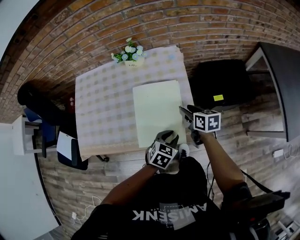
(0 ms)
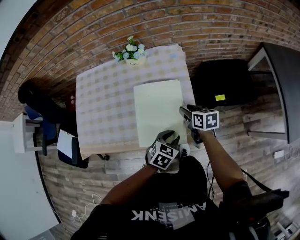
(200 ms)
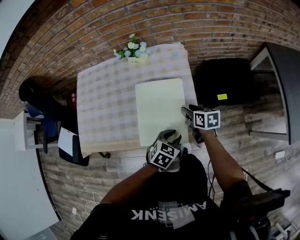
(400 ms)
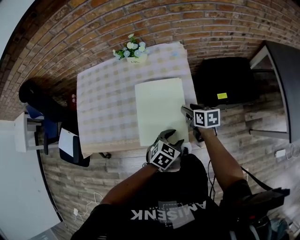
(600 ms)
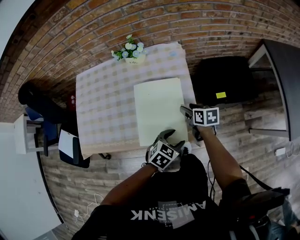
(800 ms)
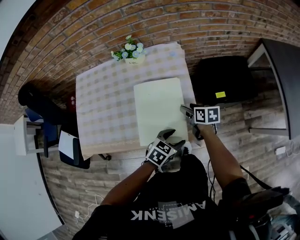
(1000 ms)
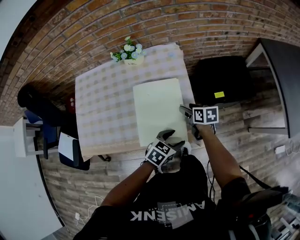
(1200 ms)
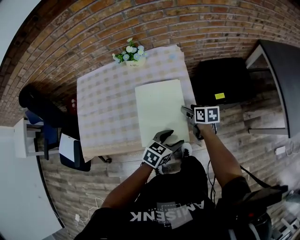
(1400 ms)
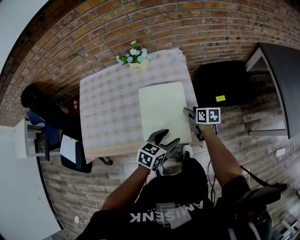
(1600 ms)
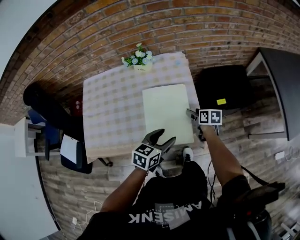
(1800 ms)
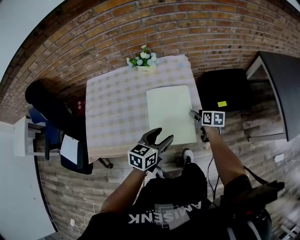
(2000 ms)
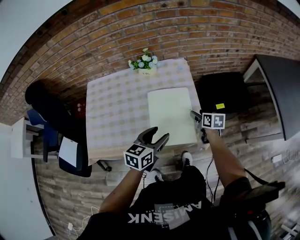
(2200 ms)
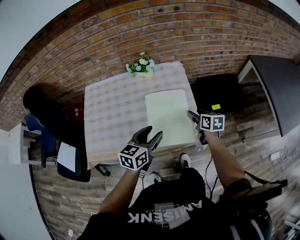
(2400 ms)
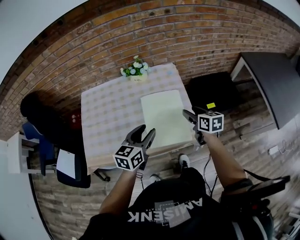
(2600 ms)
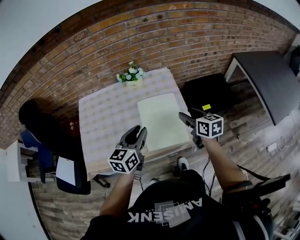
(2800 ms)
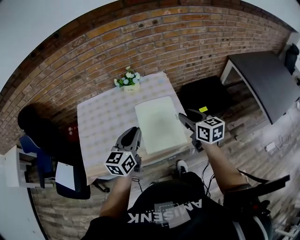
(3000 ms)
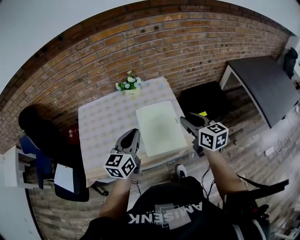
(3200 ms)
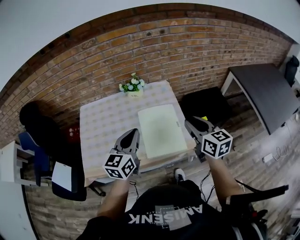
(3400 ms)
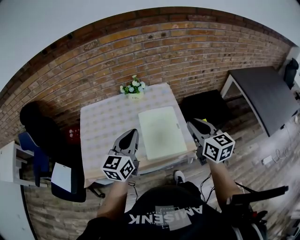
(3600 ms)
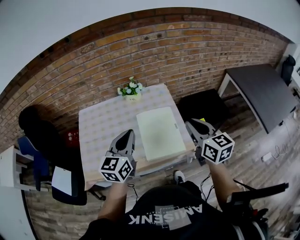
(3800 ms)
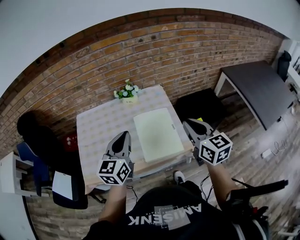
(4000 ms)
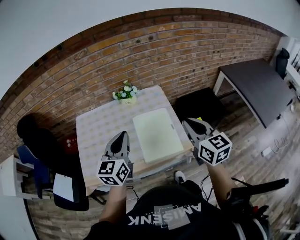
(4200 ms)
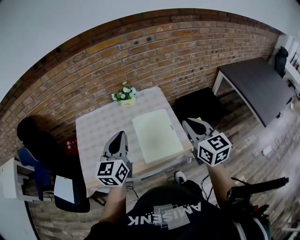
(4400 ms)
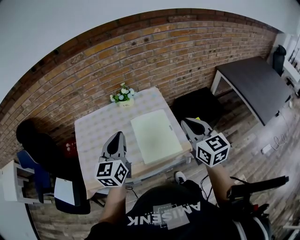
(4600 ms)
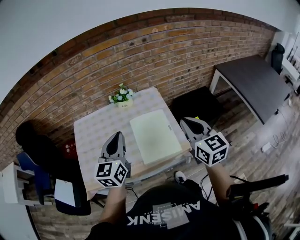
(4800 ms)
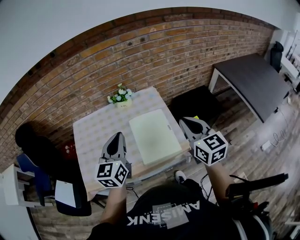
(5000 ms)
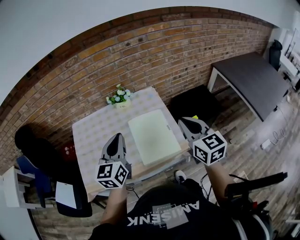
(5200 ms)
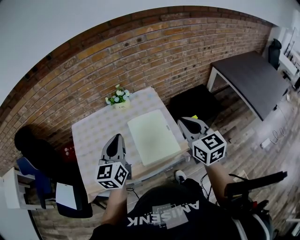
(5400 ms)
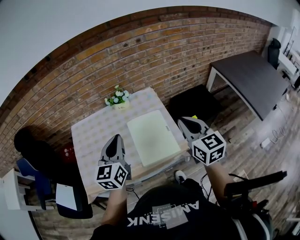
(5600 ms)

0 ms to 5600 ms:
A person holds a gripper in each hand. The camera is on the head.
0 ms to 1400 ms: The right gripper is displaced downward by some 5 cm, while the left gripper opens its fingers.
1400 ms to 2800 ms: The left gripper travels to the left and upward by about 25 cm, turns by some 40 degrees, and closes up. The right gripper travels upward by approximately 20 cm, and changes its angle by some 30 degrees.
2800 ms to 4200 ms: The left gripper is displaced upward by some 10 cm, and closes up, while the right gripper travels upward and backward by roughly 20 cm, turns by approximately 20 degrees, and closes up.
4200 ms to 5600 ms: The grippers stay close to where they were, moving slightly.

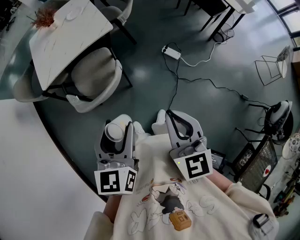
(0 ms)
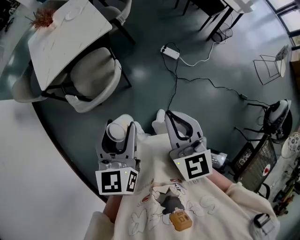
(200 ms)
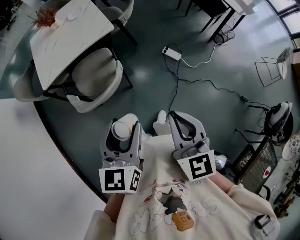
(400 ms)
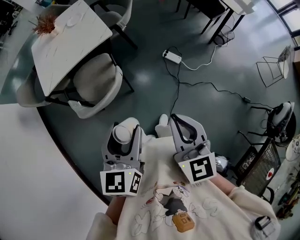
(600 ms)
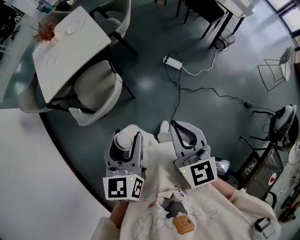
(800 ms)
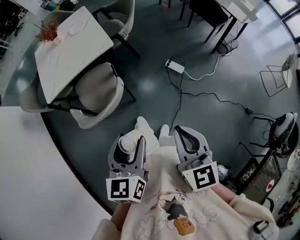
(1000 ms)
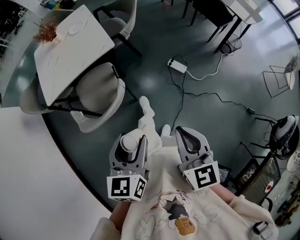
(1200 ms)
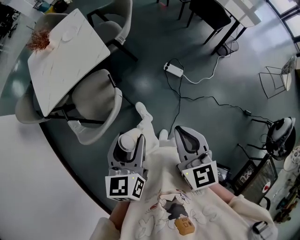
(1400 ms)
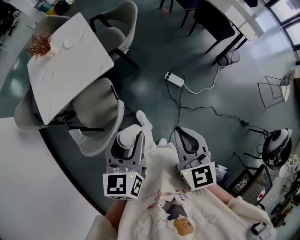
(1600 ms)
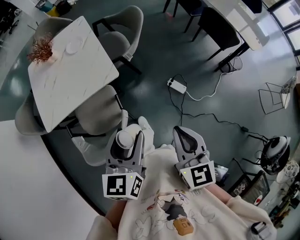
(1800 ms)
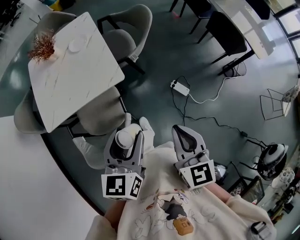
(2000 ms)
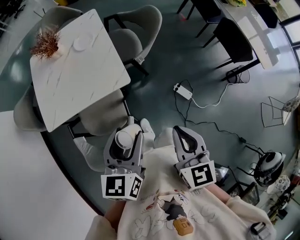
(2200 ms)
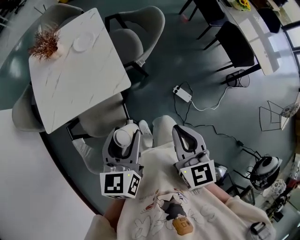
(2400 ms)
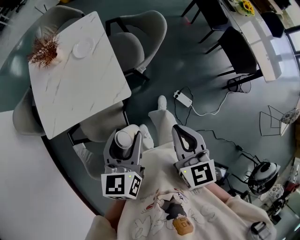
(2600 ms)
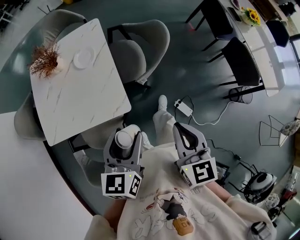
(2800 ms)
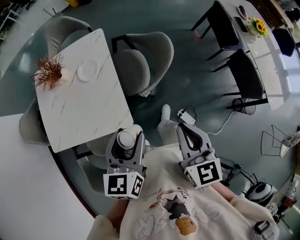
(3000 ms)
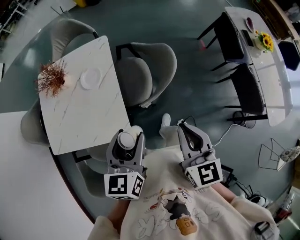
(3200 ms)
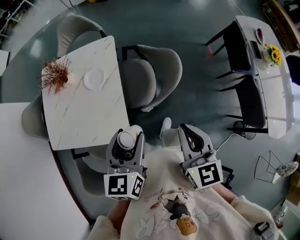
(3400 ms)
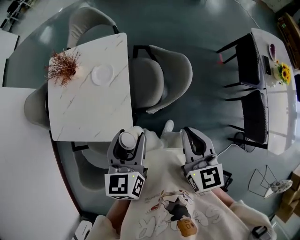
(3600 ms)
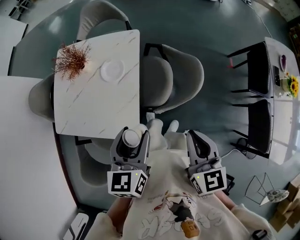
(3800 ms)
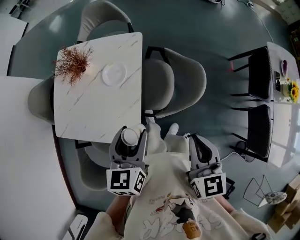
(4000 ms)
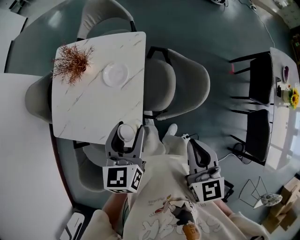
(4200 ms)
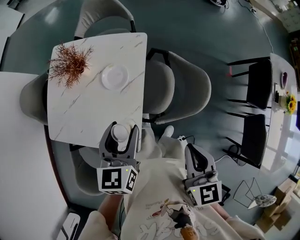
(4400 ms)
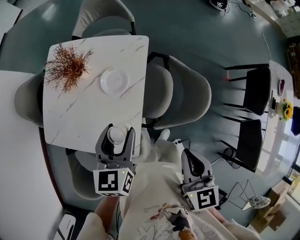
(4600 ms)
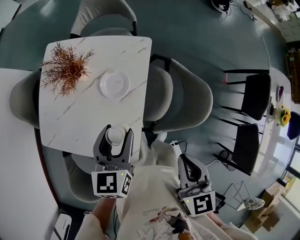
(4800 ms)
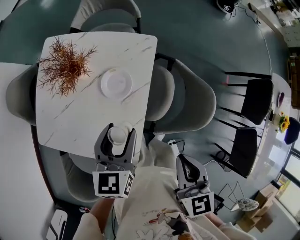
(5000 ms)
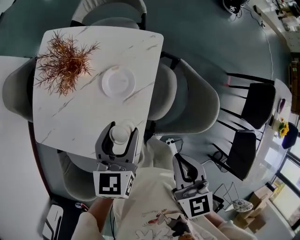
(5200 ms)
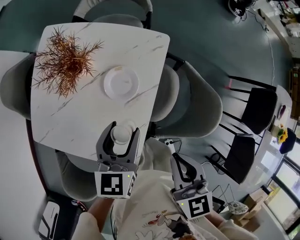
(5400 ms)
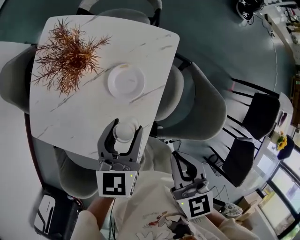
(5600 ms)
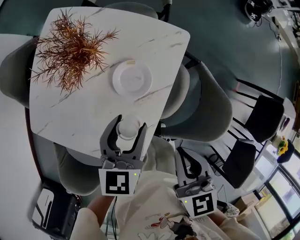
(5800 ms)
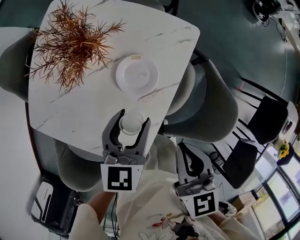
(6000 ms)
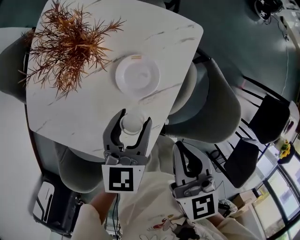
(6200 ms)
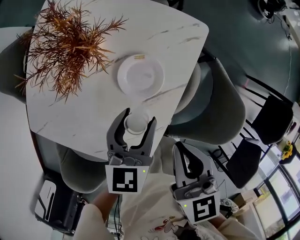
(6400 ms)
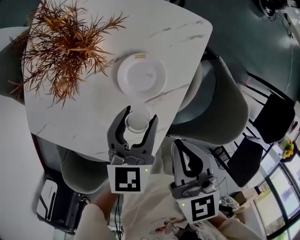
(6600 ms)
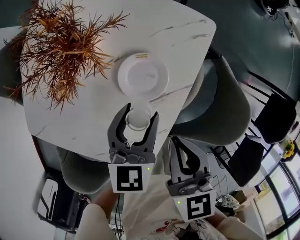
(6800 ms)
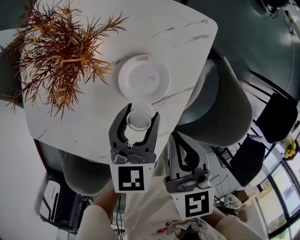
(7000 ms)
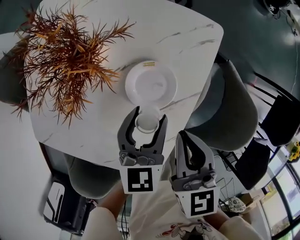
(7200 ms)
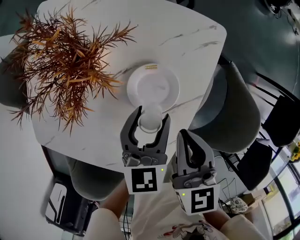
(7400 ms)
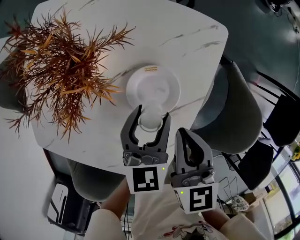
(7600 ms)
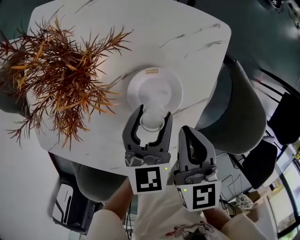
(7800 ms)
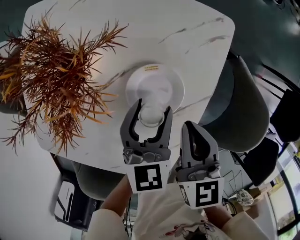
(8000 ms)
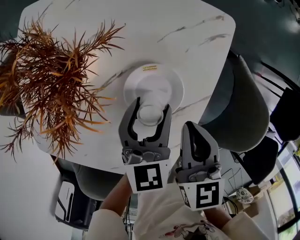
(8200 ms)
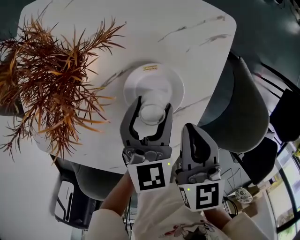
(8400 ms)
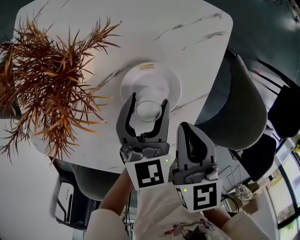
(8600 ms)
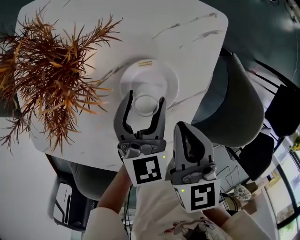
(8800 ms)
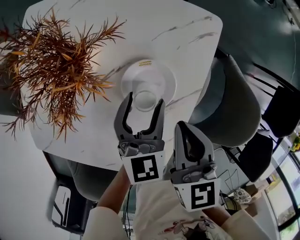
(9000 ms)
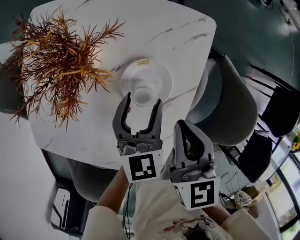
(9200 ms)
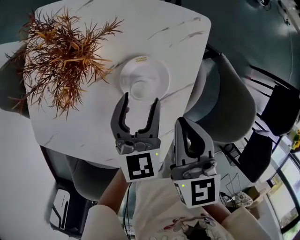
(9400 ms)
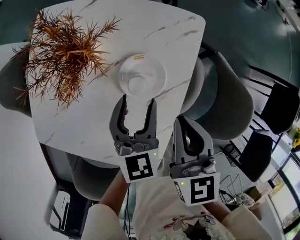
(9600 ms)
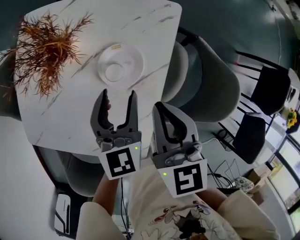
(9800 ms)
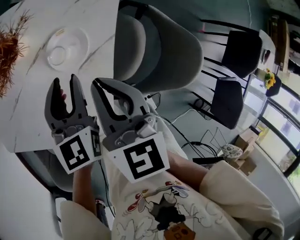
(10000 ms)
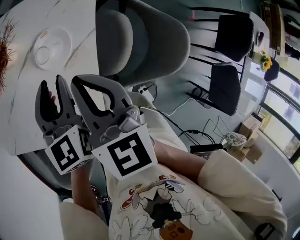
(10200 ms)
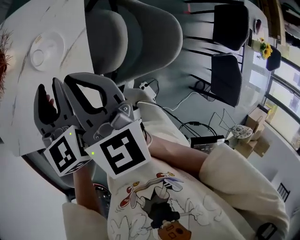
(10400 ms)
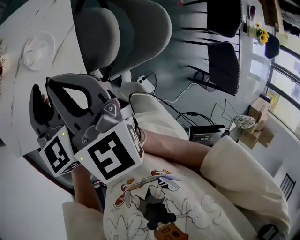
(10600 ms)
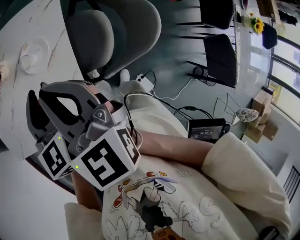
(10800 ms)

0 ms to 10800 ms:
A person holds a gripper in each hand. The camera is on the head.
0 ms to 1600 ms: Both grippers travel together forward, approximately 20 cm.
1600 ms to 3000 ms: Both grippers move forward, some 40 cm.
3000 ms to 4600 ms: Both grippers travel together forward, roughly 20 cm. The left gripper rotates some 20 degrees.
4600 ms to 6200 ms: The right gripper heads forward, to the left and downward, covering about 25 cm. Meanwhile the left gripper travels downward and forward by approximately 20 cm.
6200 ms to 7800 ms: The grippers both shift downward and forward by approximately 10 cm.
7800 ms to 9200 ms: The grippers stay close to where they were, moving slightly.
9200 ms to 10800 ms: Both grippers move upward and backward, some 20 cm. The left gripper closes up.

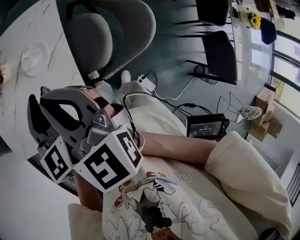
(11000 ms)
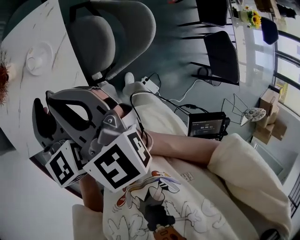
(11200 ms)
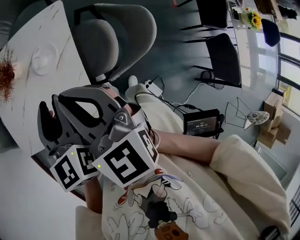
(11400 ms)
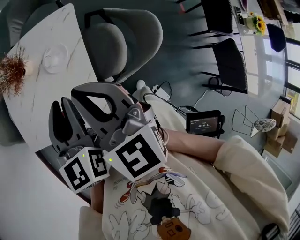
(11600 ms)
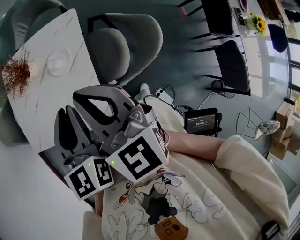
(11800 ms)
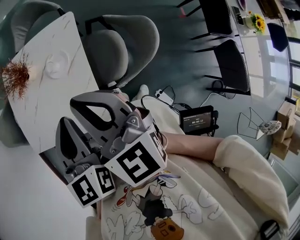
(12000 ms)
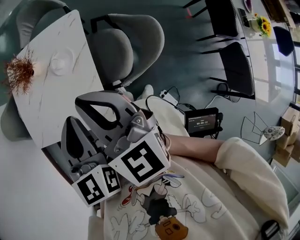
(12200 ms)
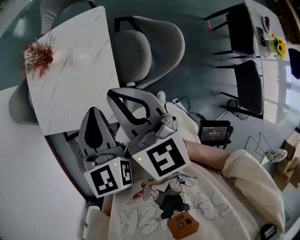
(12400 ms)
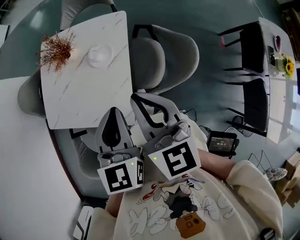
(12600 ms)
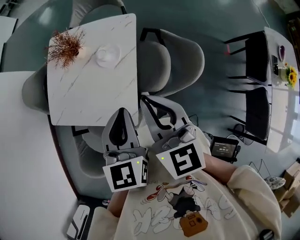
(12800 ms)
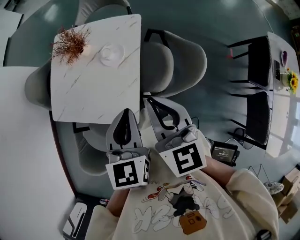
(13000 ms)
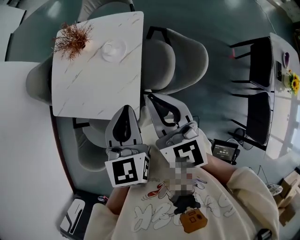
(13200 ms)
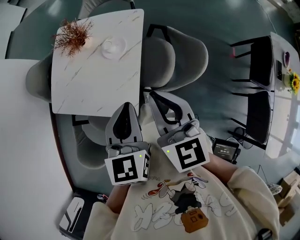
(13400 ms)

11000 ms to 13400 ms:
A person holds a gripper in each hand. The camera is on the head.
11000 ms to 12200 ms: Both grippers travel together backward and upward, roughly 15 cm. The left gripper closes up.
12200 ms to 13400 ms: The grippers move only a little.

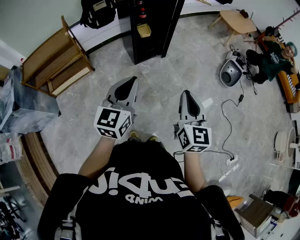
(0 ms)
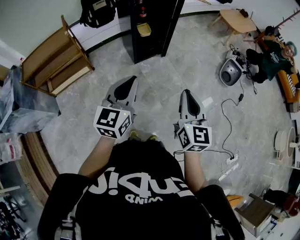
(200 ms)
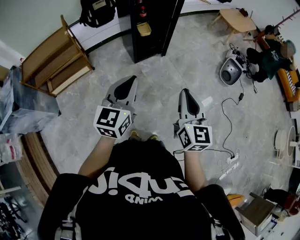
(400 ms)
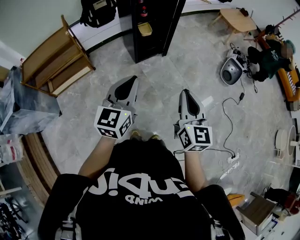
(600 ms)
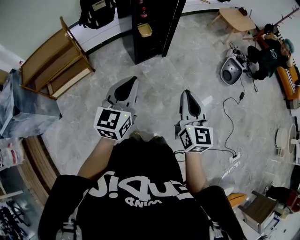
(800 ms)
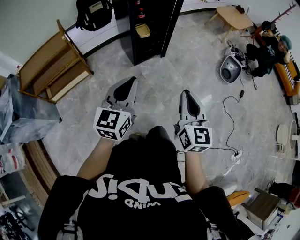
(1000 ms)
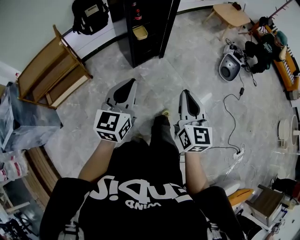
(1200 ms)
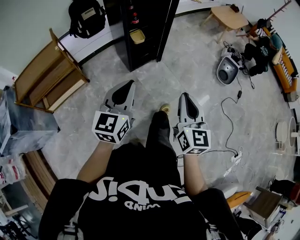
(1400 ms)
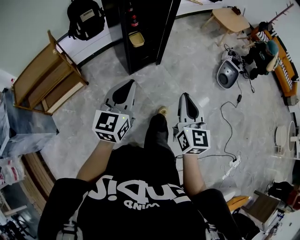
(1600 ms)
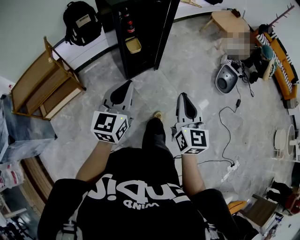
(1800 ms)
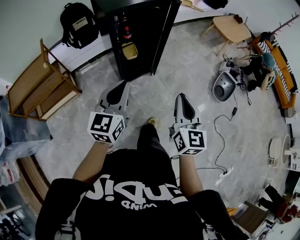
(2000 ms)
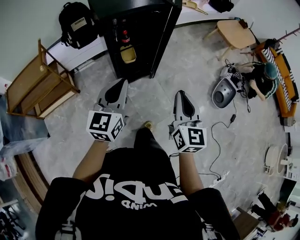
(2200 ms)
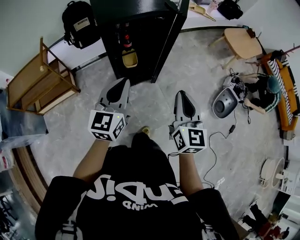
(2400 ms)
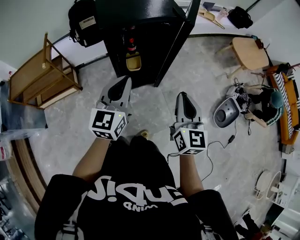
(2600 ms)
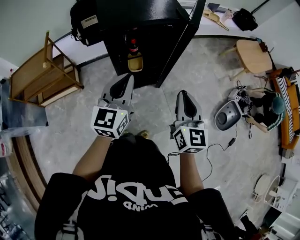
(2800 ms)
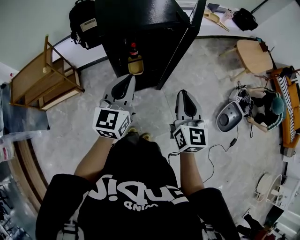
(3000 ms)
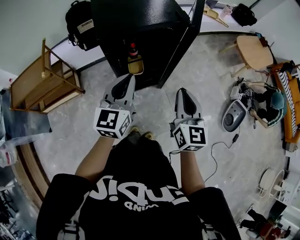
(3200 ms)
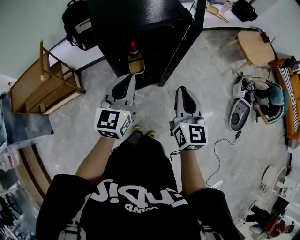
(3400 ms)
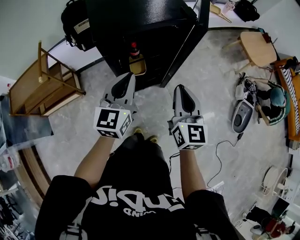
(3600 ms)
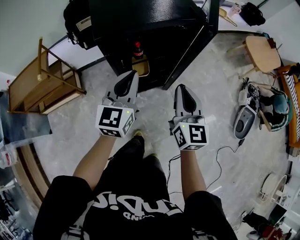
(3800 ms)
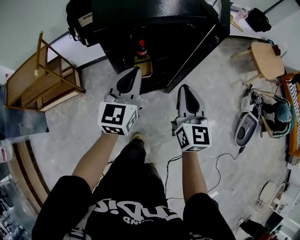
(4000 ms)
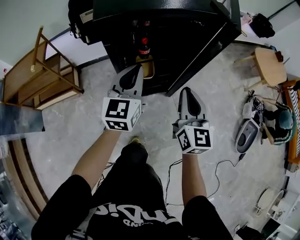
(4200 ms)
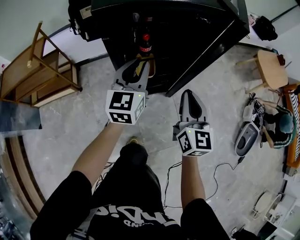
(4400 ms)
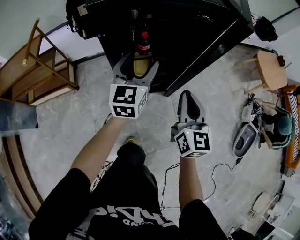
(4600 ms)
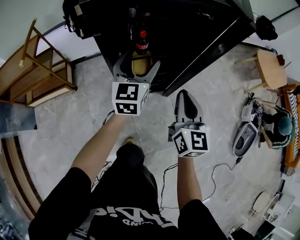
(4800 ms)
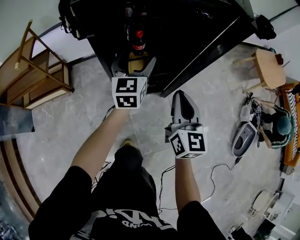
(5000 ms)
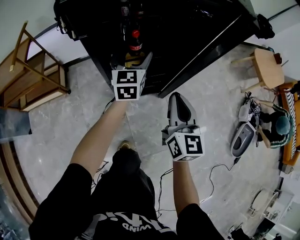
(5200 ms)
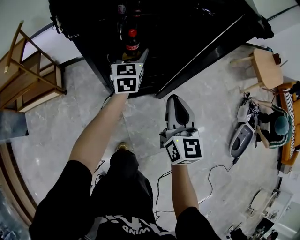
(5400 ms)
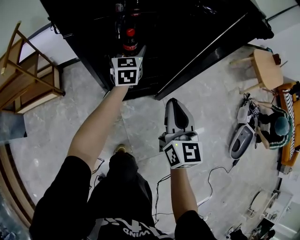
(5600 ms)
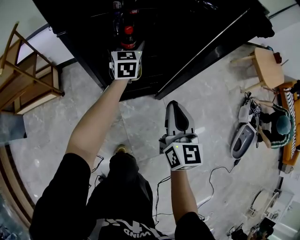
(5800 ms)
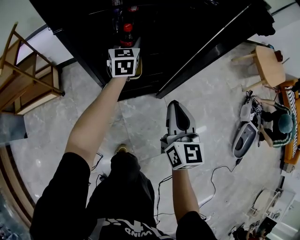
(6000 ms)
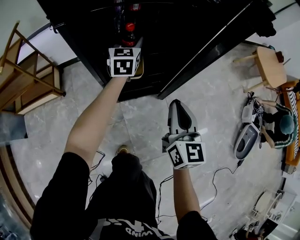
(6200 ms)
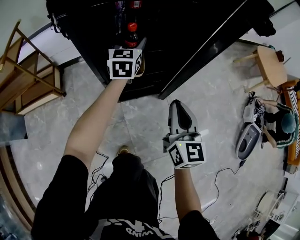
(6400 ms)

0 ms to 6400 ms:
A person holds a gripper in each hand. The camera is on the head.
0 ms to 1600 ms: The two grippers go about 10 cm forward.
1600 ms to 3200 ms: Both grippers move forward, roughly 40 cm.
3200 ms to 4800 ms: The grippers both shift downward and forward by some 25 cm. The left gripper opens.
4800 ms to 6400 ms: The left gripper is displaced forward and downward by some 20 cm, while the right gripper travels downward by approximately 10 cm.
